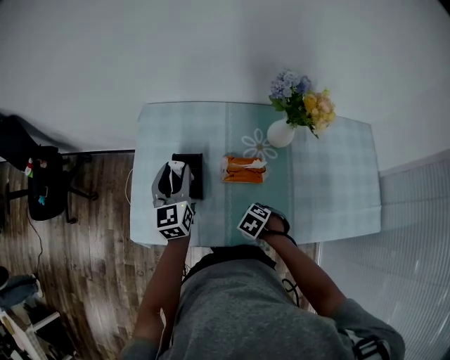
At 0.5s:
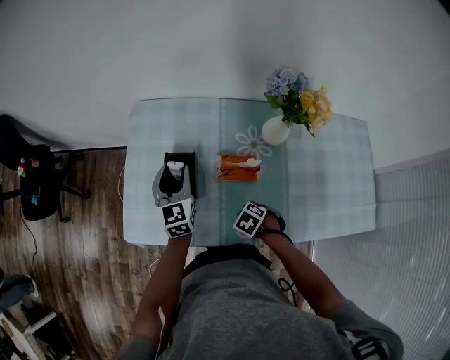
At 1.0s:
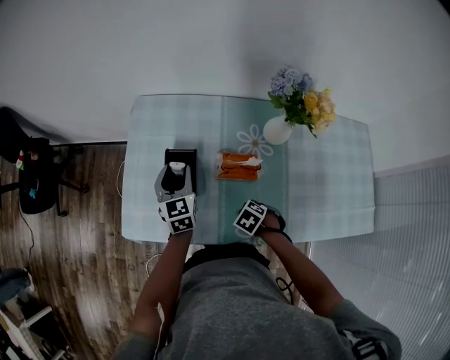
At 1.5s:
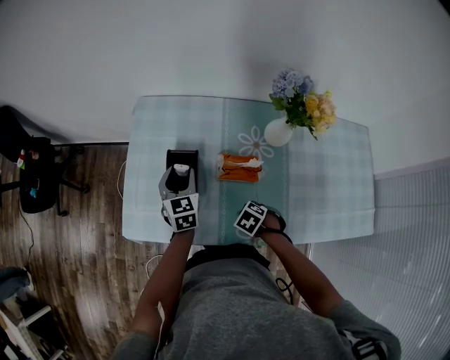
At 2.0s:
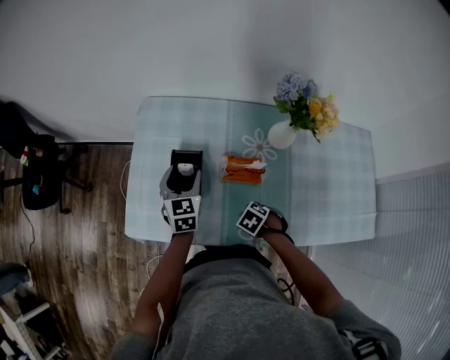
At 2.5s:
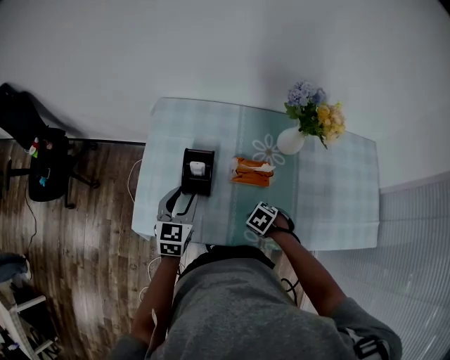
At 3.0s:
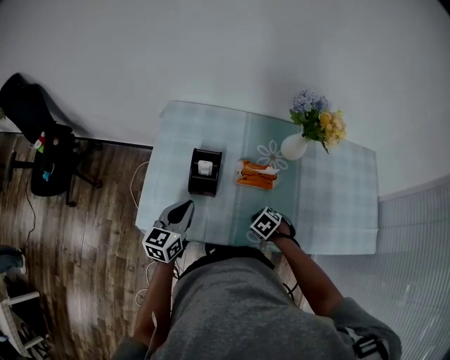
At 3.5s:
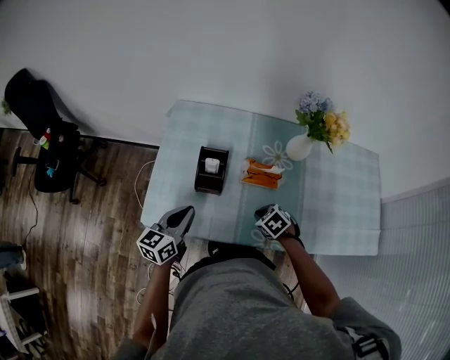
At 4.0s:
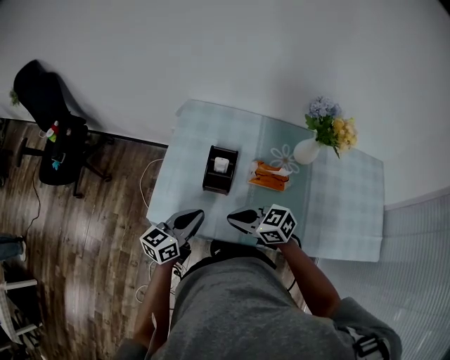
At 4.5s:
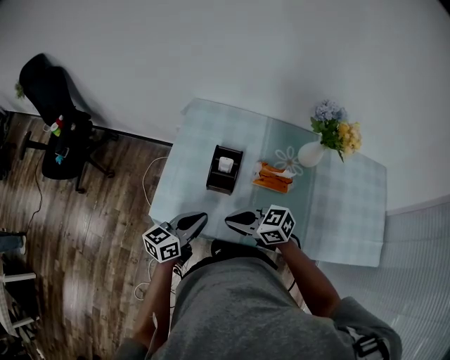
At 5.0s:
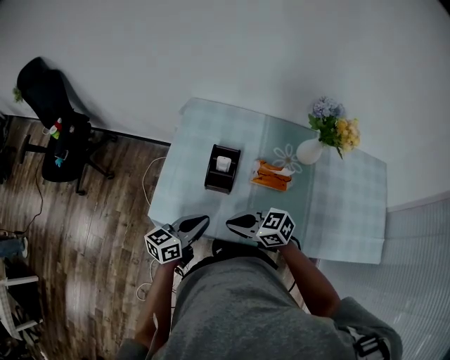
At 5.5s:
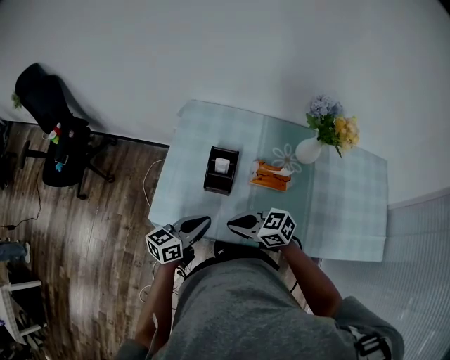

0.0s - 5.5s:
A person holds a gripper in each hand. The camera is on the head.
0.0s - 2.0s: The left gripper is displaced downward by approximately 5 cm.
2.0s - 3.5s: The left gripper ends up about 15 cm from where it was, changes its angle by some 40 degrees, and closes.
3.5s - 5.5s: The right gripper ends up approximately 20 cm from where it was, and tips its fingers upward by approximately 40 degrees.

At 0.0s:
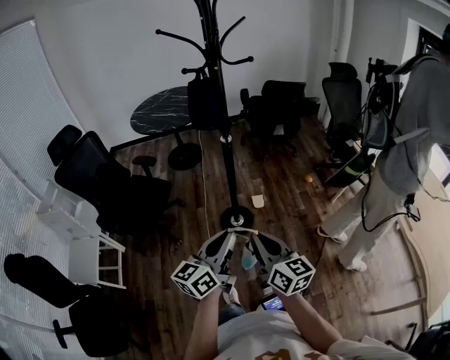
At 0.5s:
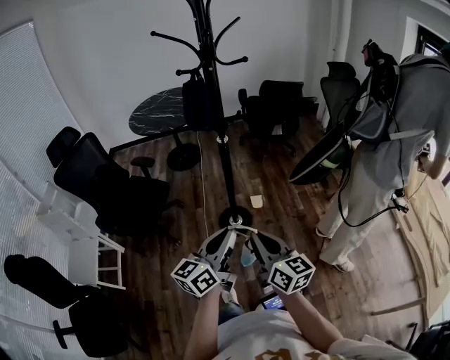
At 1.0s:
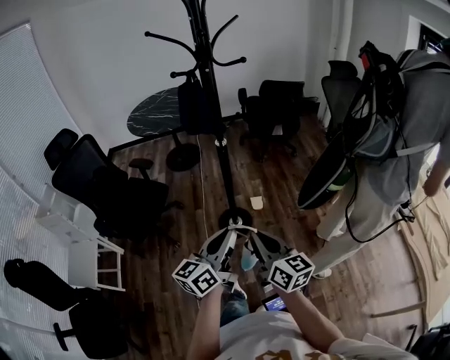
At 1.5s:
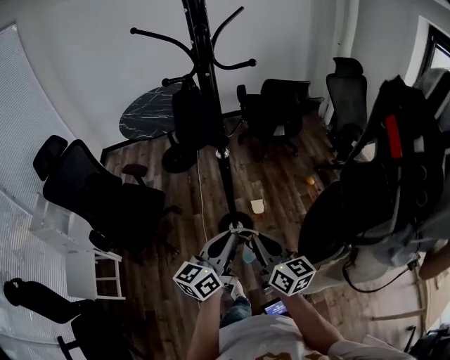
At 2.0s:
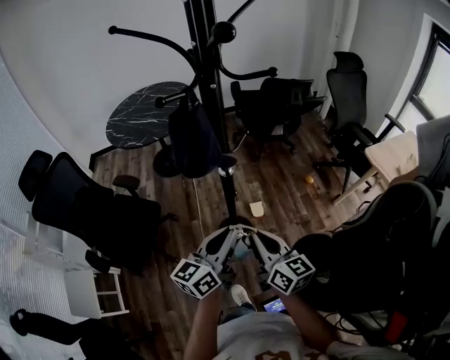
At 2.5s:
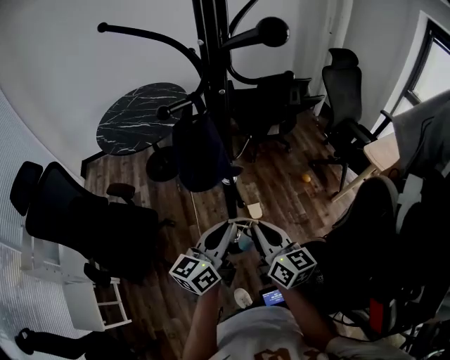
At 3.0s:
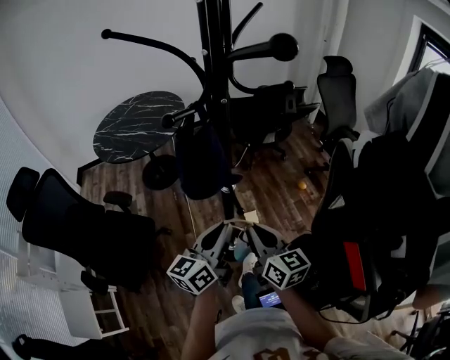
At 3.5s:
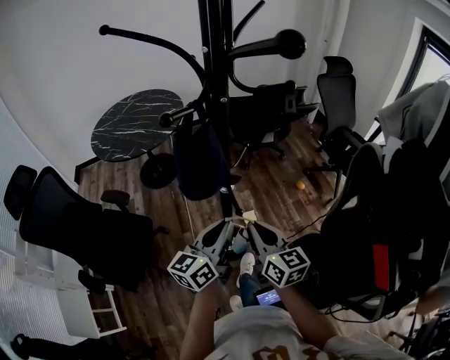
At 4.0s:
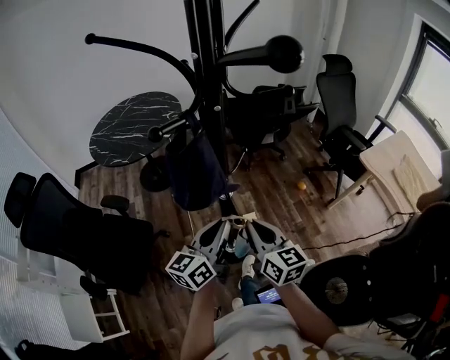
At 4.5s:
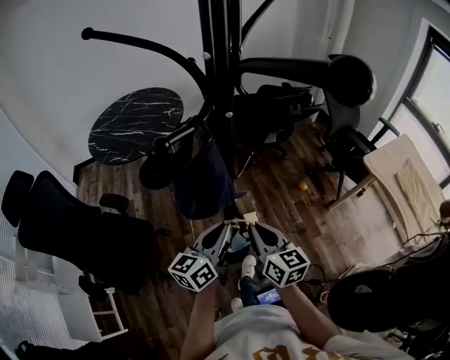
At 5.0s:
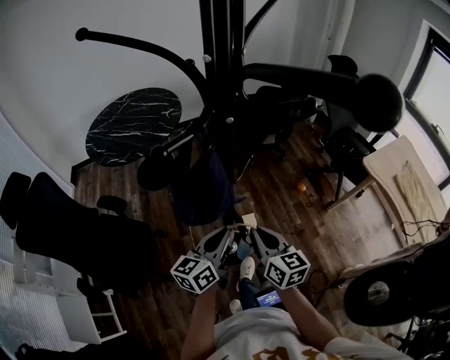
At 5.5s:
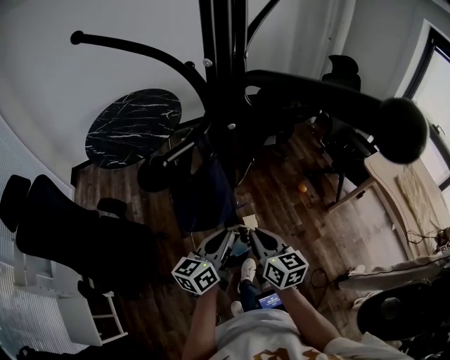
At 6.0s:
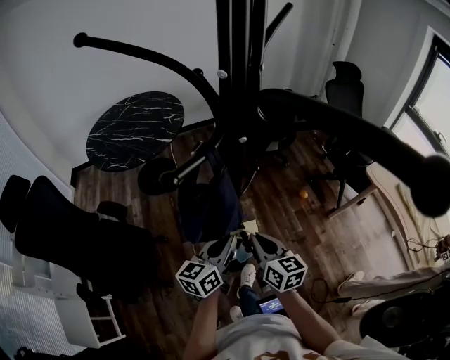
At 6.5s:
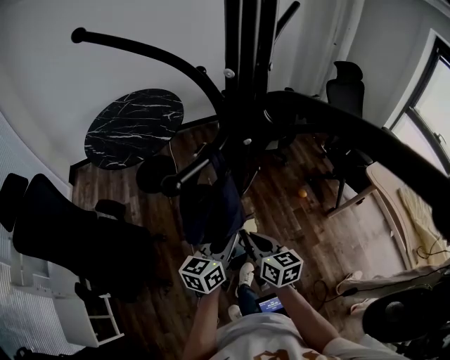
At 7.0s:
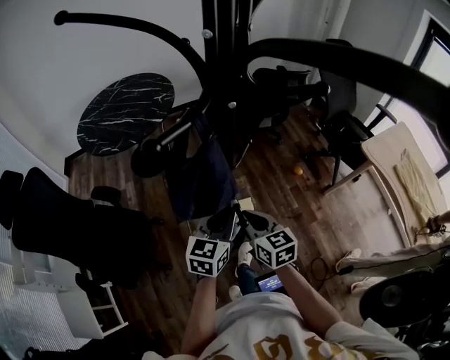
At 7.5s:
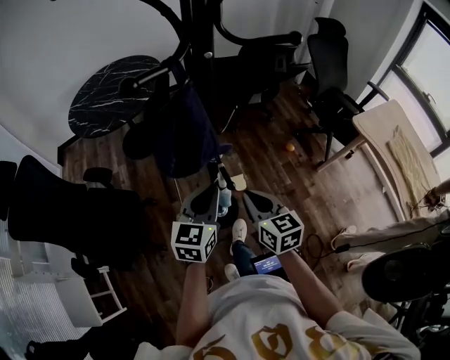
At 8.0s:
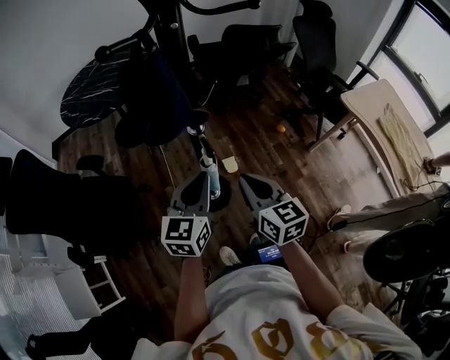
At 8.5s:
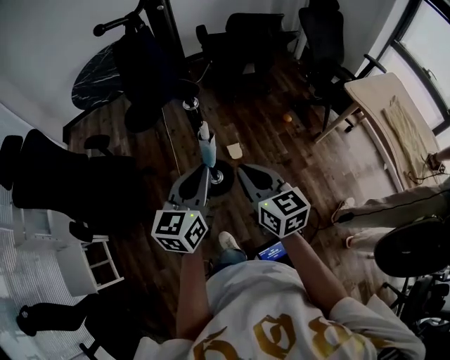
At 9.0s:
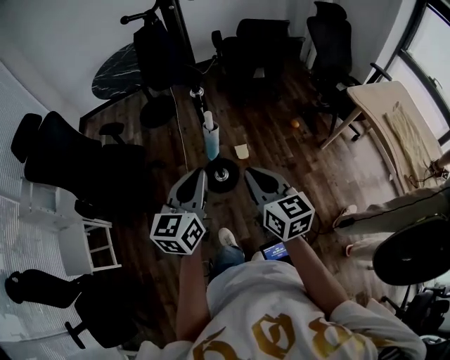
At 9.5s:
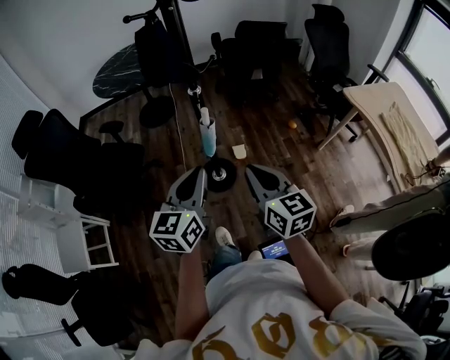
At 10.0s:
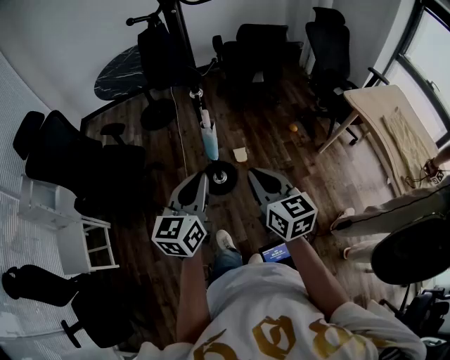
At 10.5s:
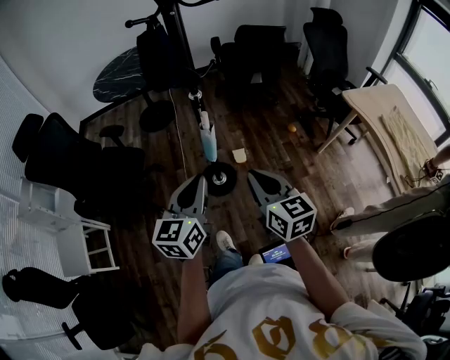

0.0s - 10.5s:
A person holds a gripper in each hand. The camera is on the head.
0.0s - 2.0s: The grippers both shift forward by some 25 cm.
2.0s - 4.0s: The two grippers go roughly 10 cm forward.
4.0s - 6.5s: Both grippers move downward and forward, some 10 cm.
6.5s - 8.5s: The right gripper is displaced backward and to the right by roughly 20 cm. The left gripper shifts some 20 cm backward.
8.5s - 10.5s: The two grippers go some 10 cm backward.

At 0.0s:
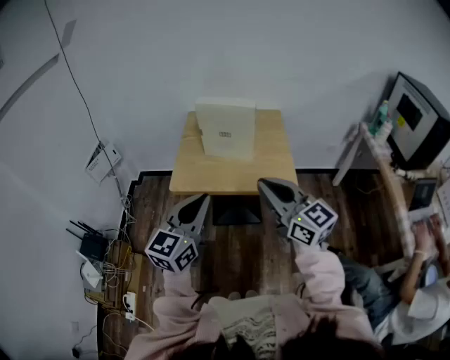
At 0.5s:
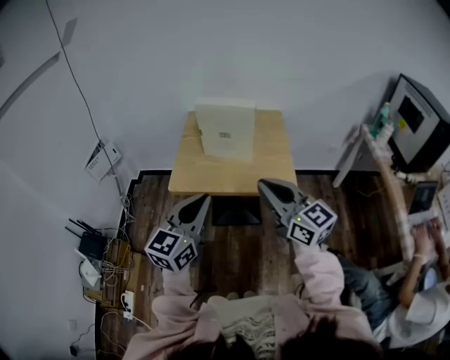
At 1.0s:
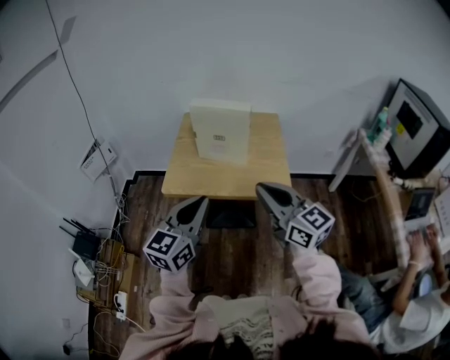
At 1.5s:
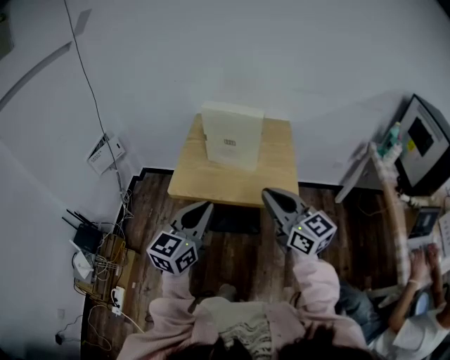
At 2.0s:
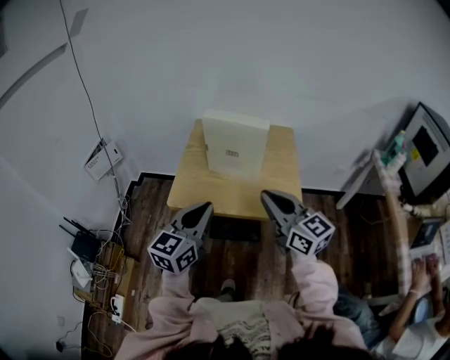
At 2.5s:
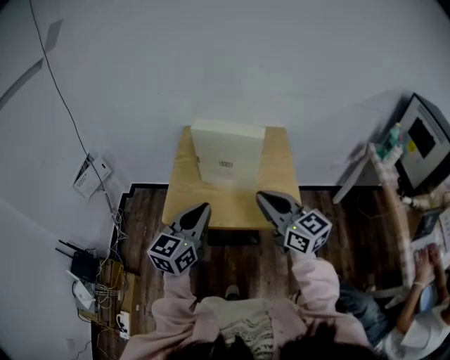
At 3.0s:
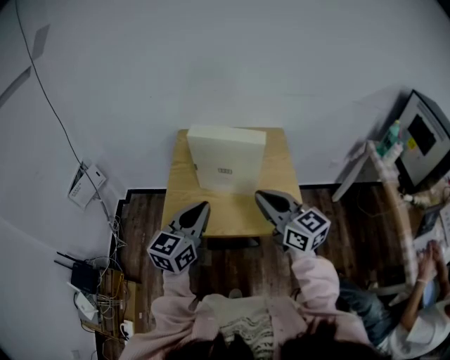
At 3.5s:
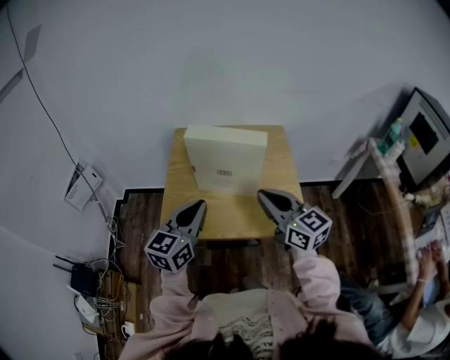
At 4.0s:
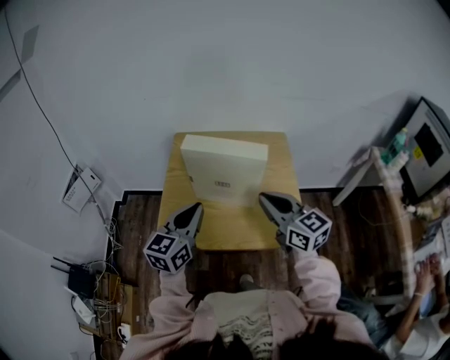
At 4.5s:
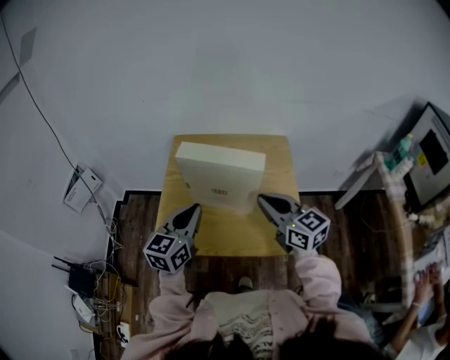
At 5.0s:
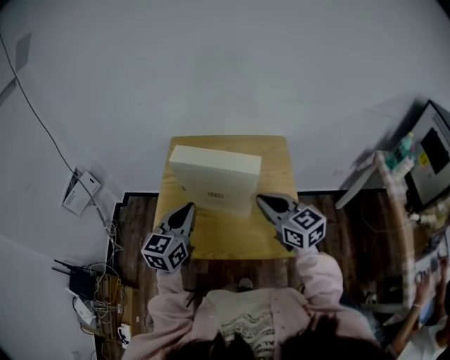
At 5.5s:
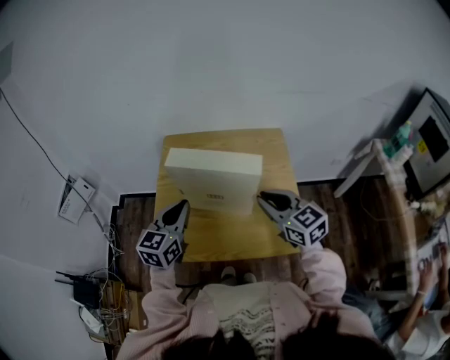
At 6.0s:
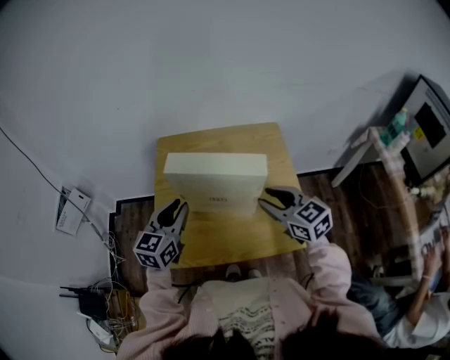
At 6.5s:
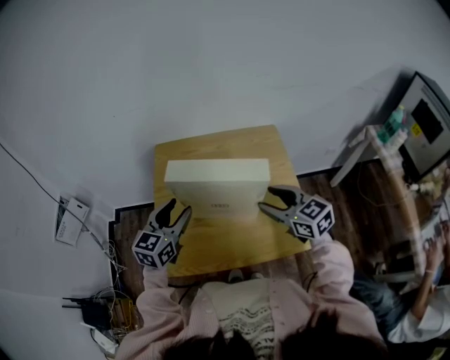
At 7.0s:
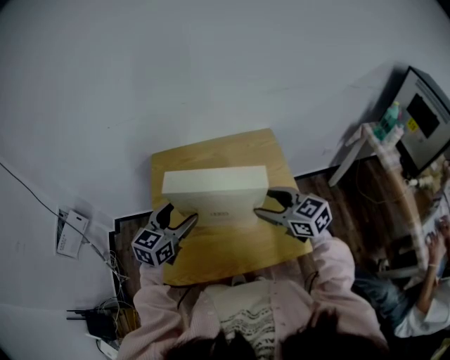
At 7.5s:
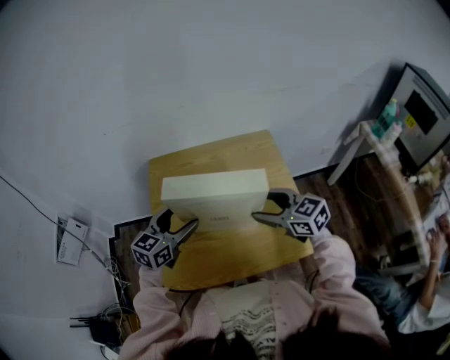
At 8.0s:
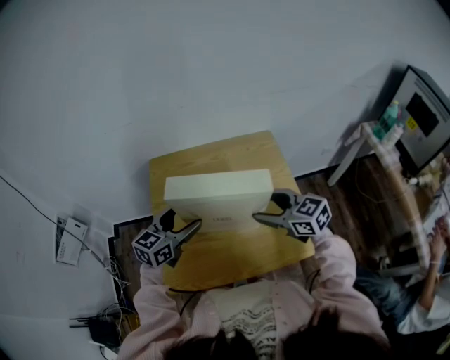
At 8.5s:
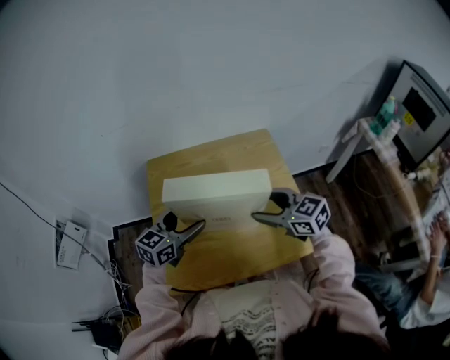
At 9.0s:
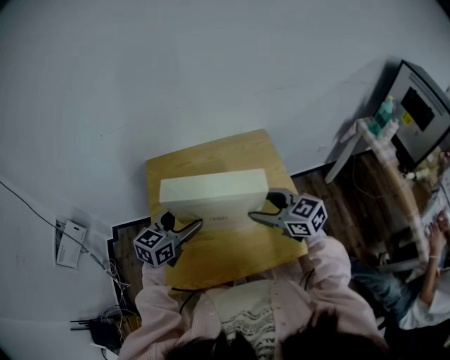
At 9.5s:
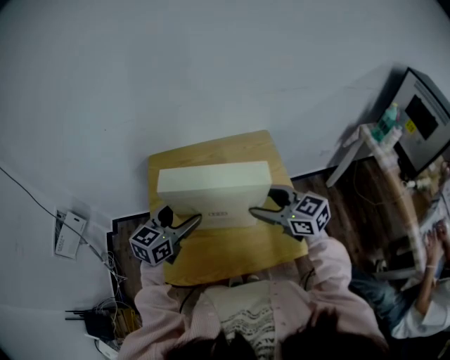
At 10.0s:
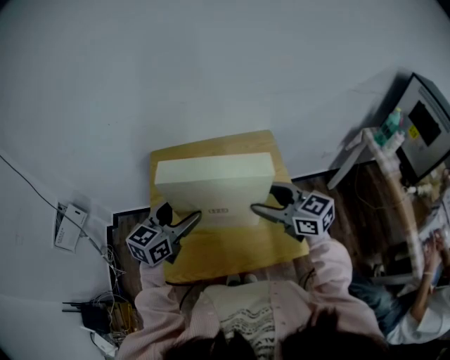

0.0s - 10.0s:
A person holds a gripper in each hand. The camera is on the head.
0.0s - 2.0s: The grippers both shift forward by roughly 10 cm.
2.0s - 4.0s: Both grippers move forward, roughly 15 cm.
4.0s - 6.0s: The left gripper heads forward, covering some 10 cm, while the right gripper travels forward and downward by roughly 10 cm, and opens its fingers.
6.0s - 8.0s: The right gripper opens, while the left gripper travels forward by about 5 cm, swivels about 20 degrees, and opens.
8.0s - 10.0s: Both grippers travel together upward, some 5 cm.

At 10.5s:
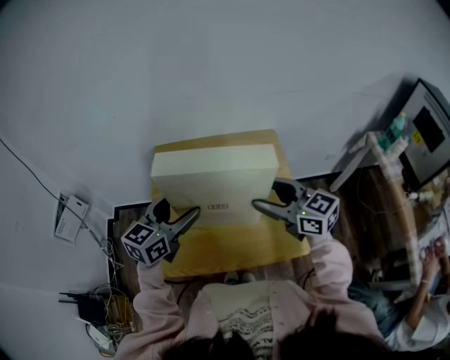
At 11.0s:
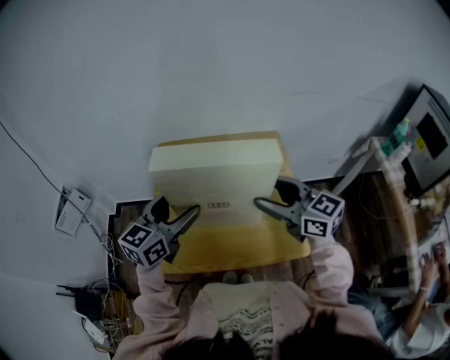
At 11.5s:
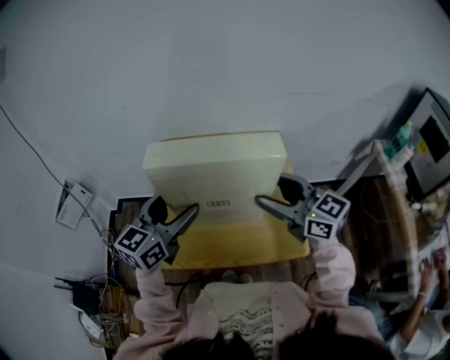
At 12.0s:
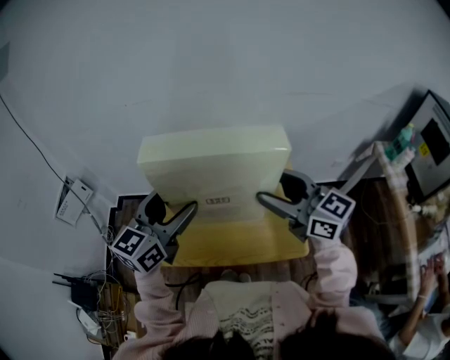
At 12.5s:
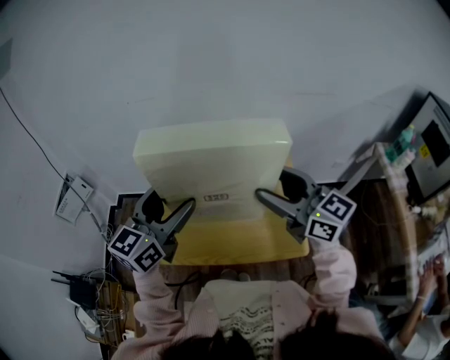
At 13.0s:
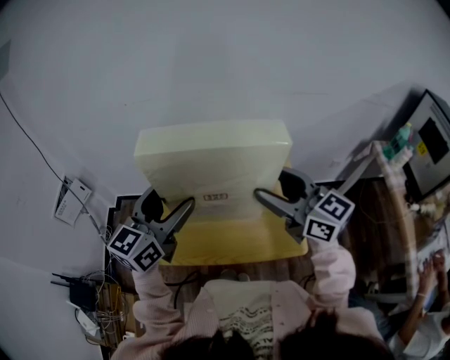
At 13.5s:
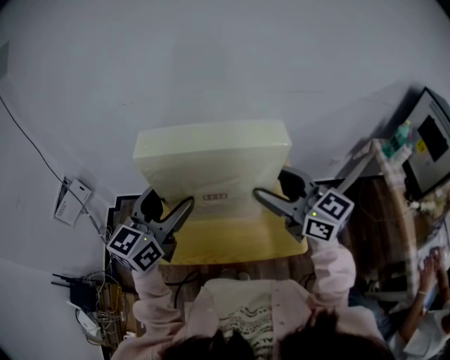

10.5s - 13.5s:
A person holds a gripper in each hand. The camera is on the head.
10.5s - 12.0s: Both grippers travel together upward, approximately 5 cm.
12.0s - 13.5s: Neither gripper changes place.
